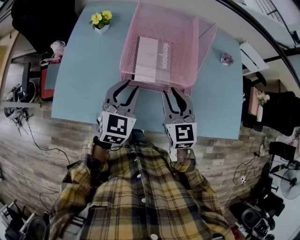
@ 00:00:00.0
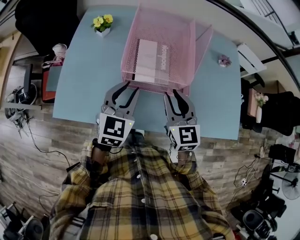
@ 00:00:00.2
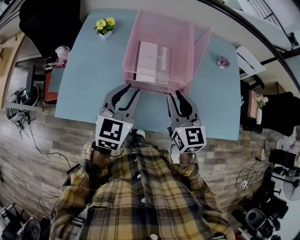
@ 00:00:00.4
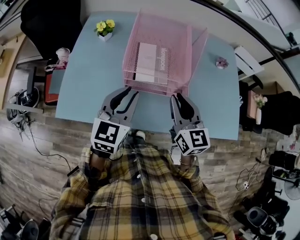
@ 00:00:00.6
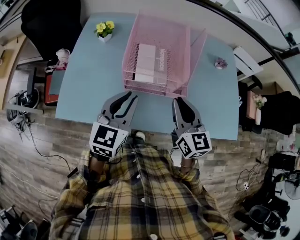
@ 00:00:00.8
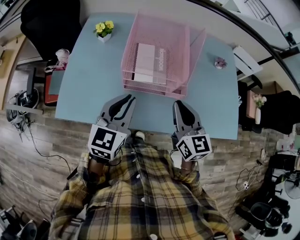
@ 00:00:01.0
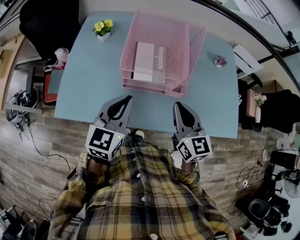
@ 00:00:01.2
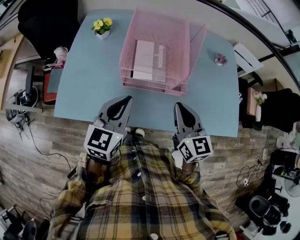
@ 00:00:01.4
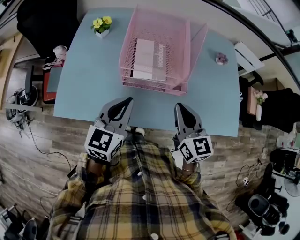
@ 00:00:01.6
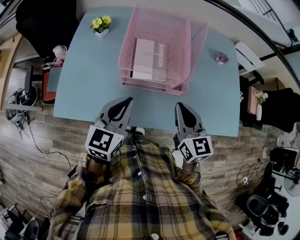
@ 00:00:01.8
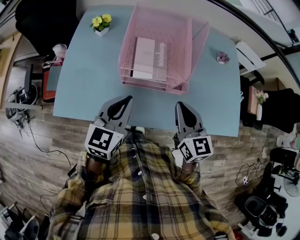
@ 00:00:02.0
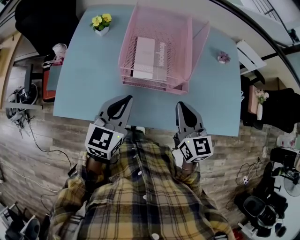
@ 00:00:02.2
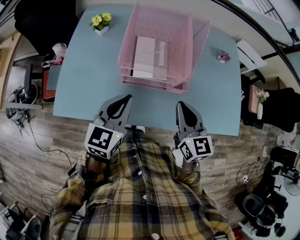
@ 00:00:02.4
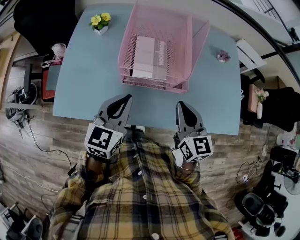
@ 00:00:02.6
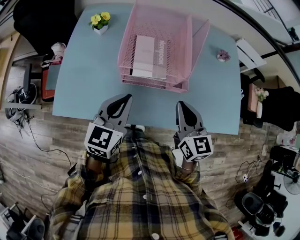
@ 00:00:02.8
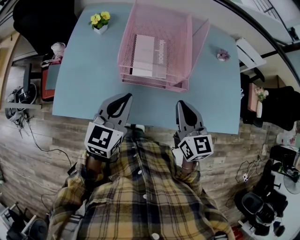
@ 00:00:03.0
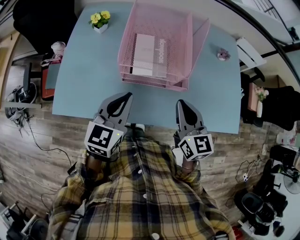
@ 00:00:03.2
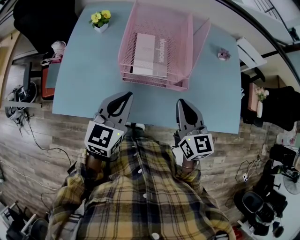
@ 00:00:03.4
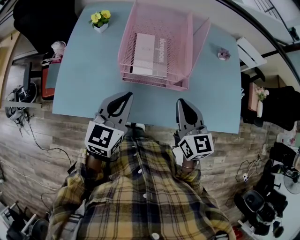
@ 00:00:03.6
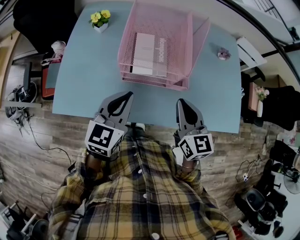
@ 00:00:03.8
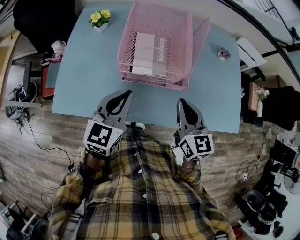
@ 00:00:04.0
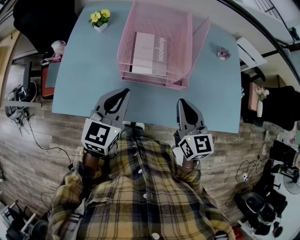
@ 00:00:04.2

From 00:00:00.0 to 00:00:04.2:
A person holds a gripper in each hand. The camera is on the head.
From 00:00:00.0 to 00:00:01.4: The right gripper goes about 5 cm backward. Meanwhile the left gripper travels backward and upward by roughly 10 cm, and closes up.
From 00:00:01.4 to 00:00:02.8: The grippers move only a little.
From 00:00:02.8 to 00:00:04.2: The two grippers keep their place.

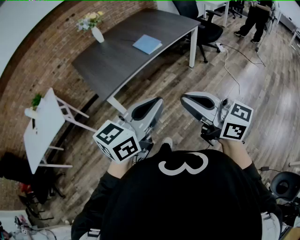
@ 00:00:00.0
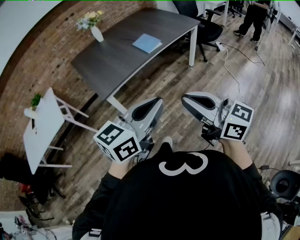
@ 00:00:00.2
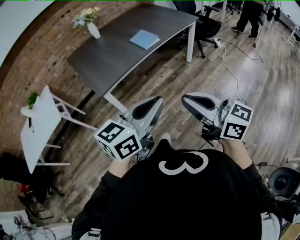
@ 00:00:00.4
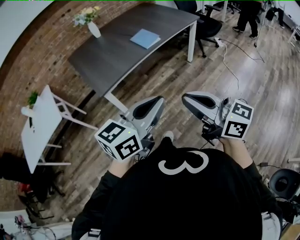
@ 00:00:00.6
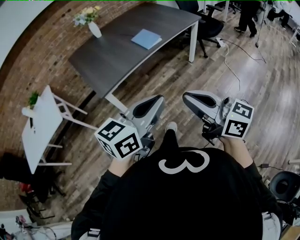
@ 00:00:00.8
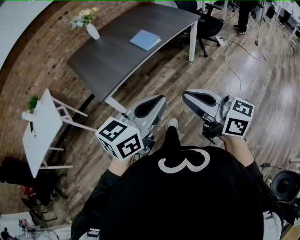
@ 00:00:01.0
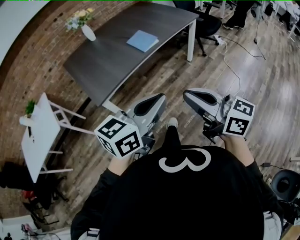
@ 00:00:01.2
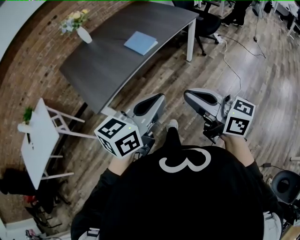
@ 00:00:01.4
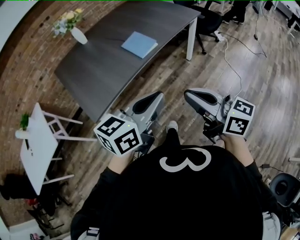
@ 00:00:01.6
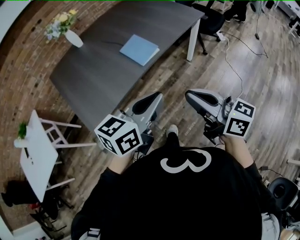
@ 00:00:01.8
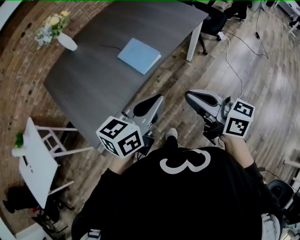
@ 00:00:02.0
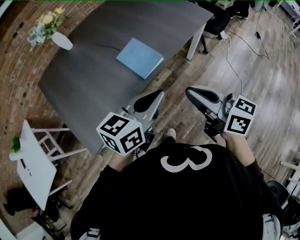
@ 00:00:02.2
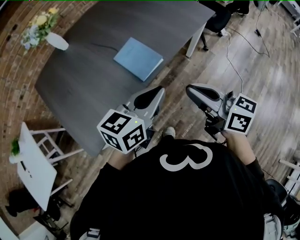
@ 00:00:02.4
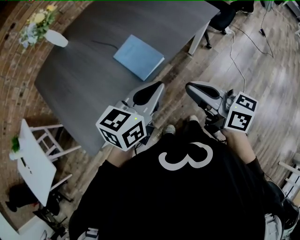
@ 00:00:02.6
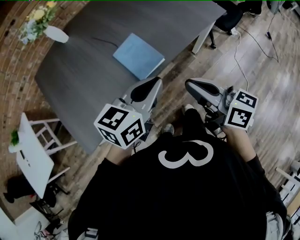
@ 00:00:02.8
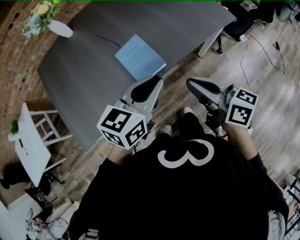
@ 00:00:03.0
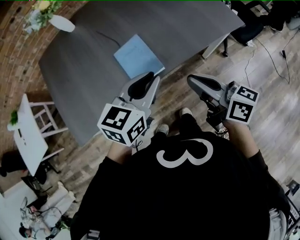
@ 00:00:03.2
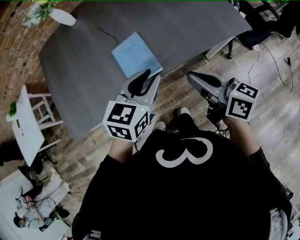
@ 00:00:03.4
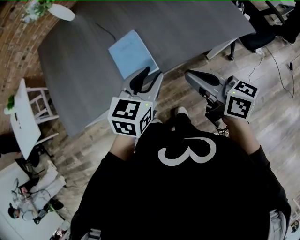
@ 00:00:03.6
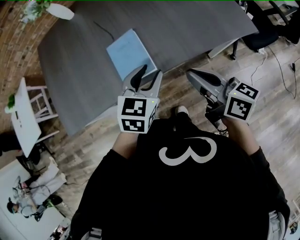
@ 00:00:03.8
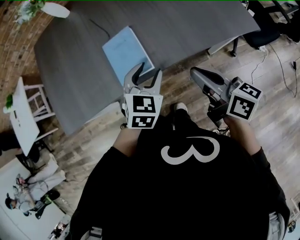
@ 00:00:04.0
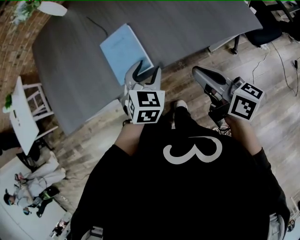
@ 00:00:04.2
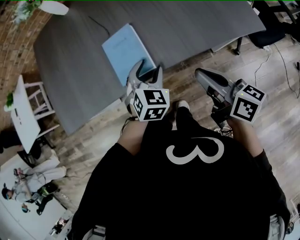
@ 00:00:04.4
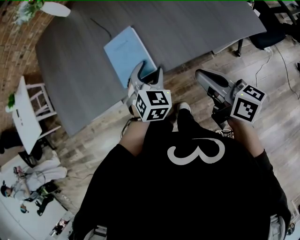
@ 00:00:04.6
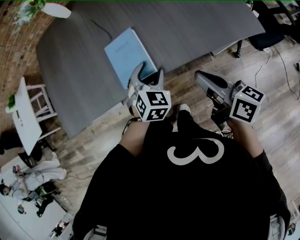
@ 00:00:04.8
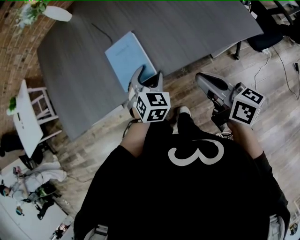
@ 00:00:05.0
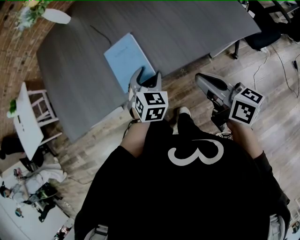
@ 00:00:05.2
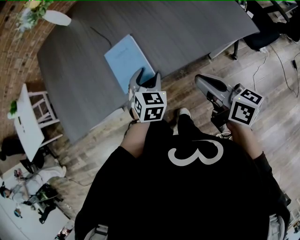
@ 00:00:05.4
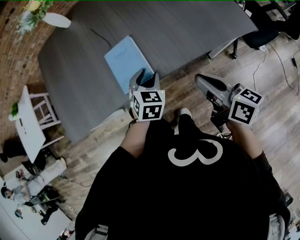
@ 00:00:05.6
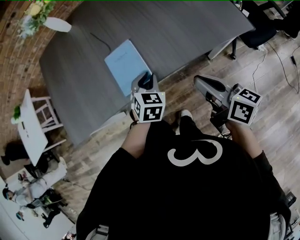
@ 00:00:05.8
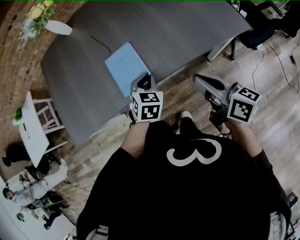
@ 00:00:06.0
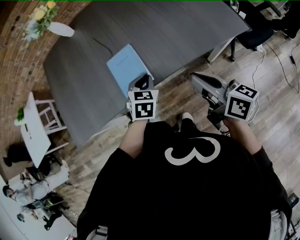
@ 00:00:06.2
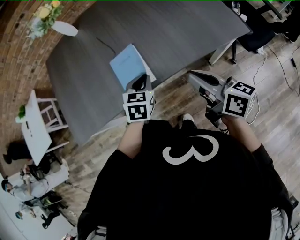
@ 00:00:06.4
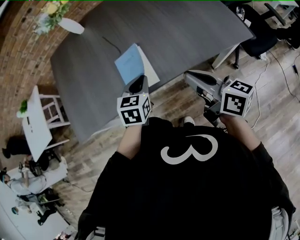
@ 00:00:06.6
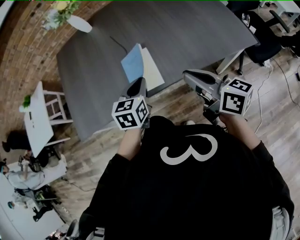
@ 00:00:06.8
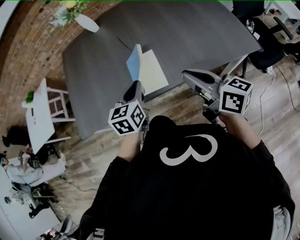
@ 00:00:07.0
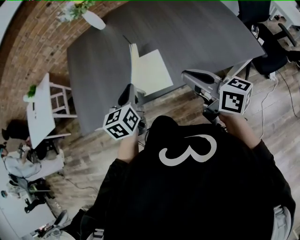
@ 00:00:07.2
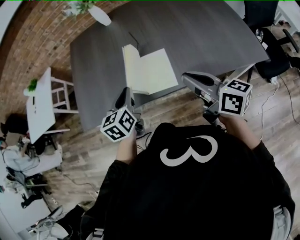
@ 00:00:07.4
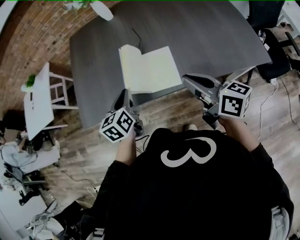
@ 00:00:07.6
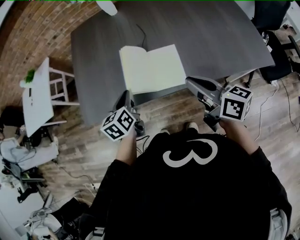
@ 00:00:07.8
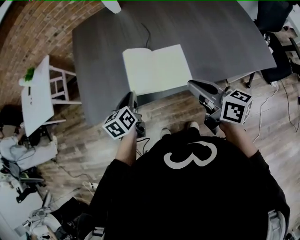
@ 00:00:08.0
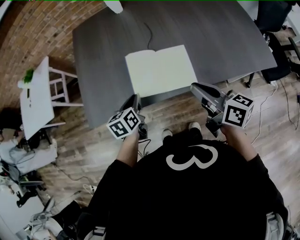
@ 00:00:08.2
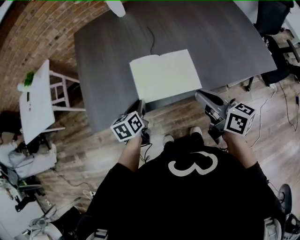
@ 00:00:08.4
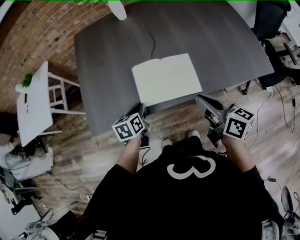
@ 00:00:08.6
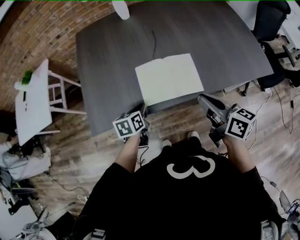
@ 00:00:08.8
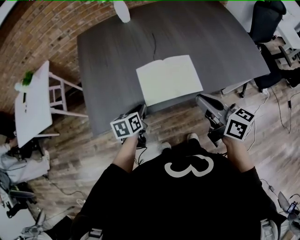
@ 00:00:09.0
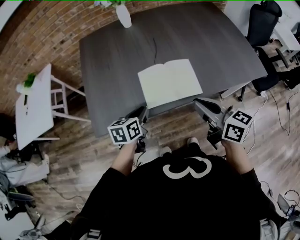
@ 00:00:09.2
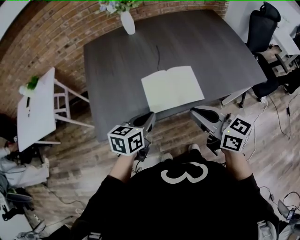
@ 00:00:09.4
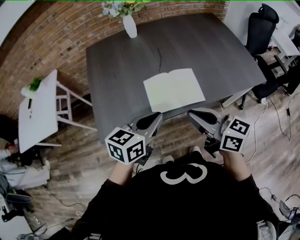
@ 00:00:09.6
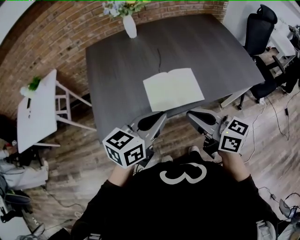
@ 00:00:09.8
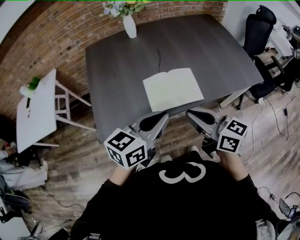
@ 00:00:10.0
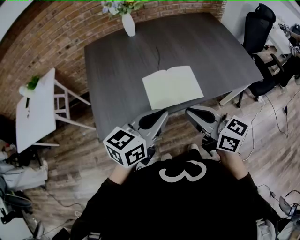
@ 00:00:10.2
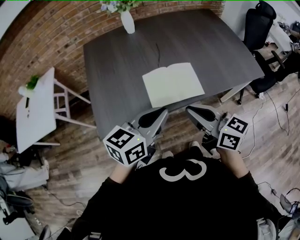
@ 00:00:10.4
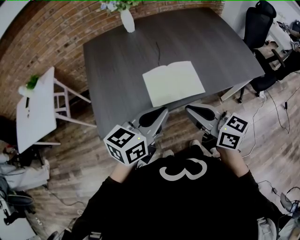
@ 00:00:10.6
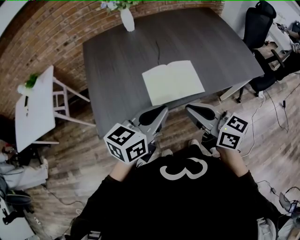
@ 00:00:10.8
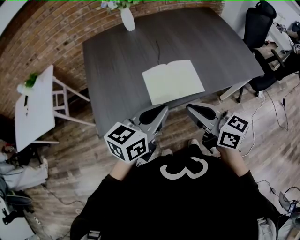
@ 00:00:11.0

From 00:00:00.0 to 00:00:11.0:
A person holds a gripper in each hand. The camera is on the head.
From 00:00:00.0 to 00:00:01.6: The grippers both shift forward by approximately 20 cm.
From 00:00:01.6 to 00:00:03.2: The grippers both shift forward by some 40 cm. The right gripper swivels approximately 20 degrees; the left gripper changes its angle by some 30 degrees.
From 00:00:03.2 to 00:00:04.8: The left gripper shifts about 20 cm downward and forward, turns by about 50 degrees, and opens its fingers. The right gripper shifts approximately 10 cm to the right and downward.
From 00:00:04.8 to 00:00:06.2: The left gripper closes its fingers.
From 00:00:06.2 to 00:00:07.8: The left gripper goes about 25 cm to the left, and twists roughly 40 degrees counterclockwise, seen from behind. Meanwhile the right gripper travels to the left and forward by roughly 15 cm.
From 00:00:07.8 to 00:00:09.4: The right gripper is displaced to the left by about 10 cm. Meanwhile the left gripper moves approximately 10 cm downward and comes back, and swivels roughly 40 degrees.
From 00:00:09.4 to 00:00:11.0: The left gripper goes roughly 10 cm upward.

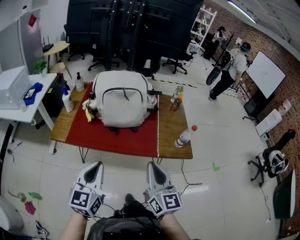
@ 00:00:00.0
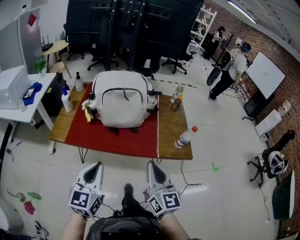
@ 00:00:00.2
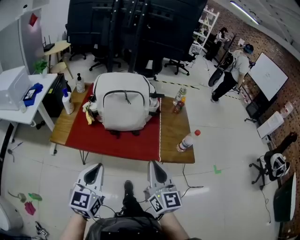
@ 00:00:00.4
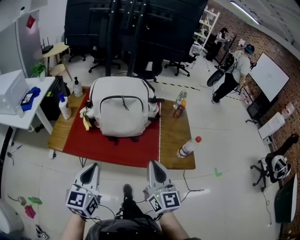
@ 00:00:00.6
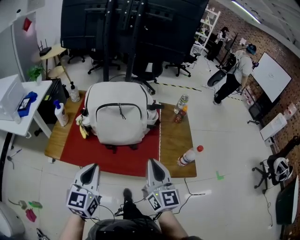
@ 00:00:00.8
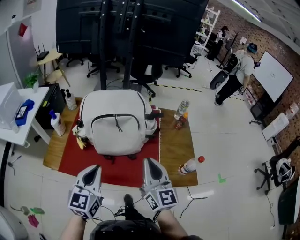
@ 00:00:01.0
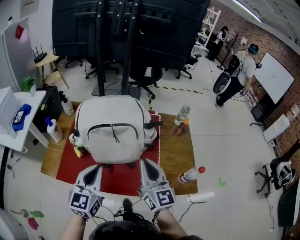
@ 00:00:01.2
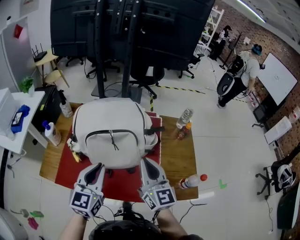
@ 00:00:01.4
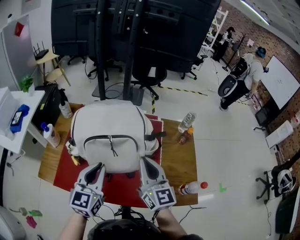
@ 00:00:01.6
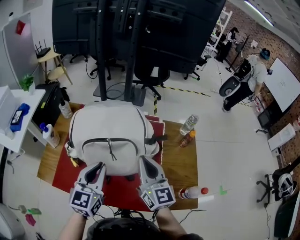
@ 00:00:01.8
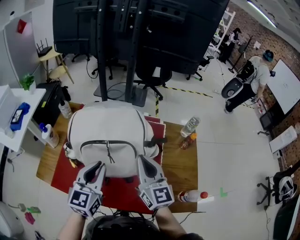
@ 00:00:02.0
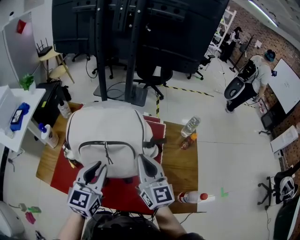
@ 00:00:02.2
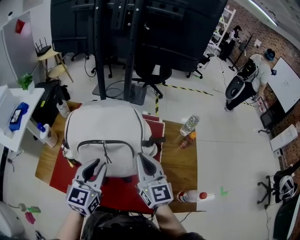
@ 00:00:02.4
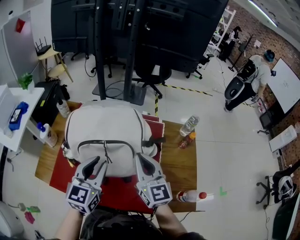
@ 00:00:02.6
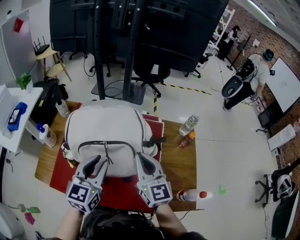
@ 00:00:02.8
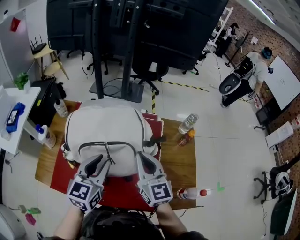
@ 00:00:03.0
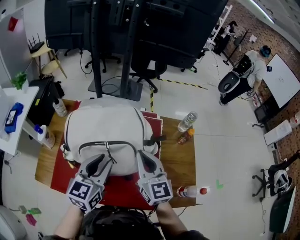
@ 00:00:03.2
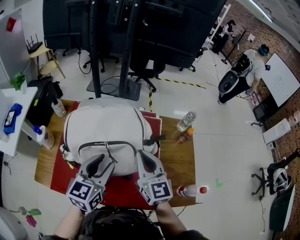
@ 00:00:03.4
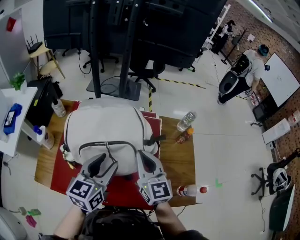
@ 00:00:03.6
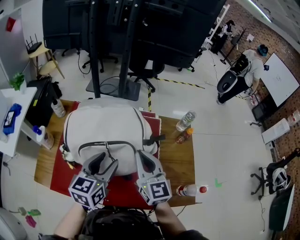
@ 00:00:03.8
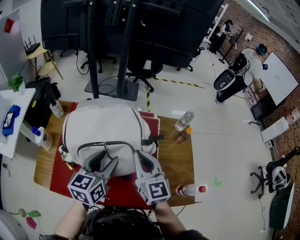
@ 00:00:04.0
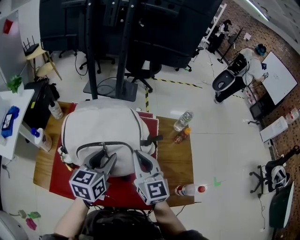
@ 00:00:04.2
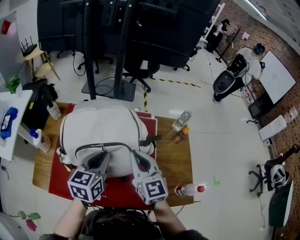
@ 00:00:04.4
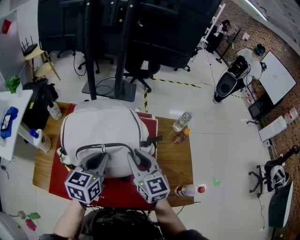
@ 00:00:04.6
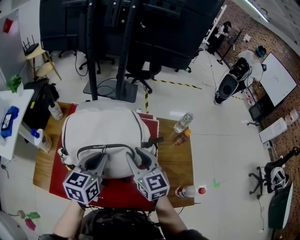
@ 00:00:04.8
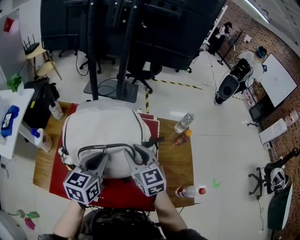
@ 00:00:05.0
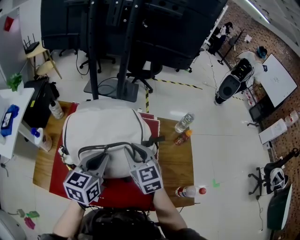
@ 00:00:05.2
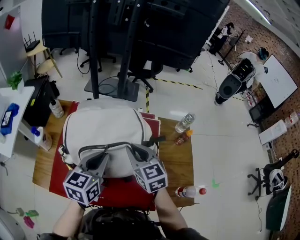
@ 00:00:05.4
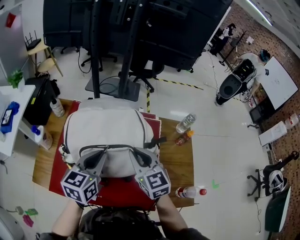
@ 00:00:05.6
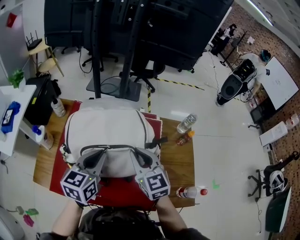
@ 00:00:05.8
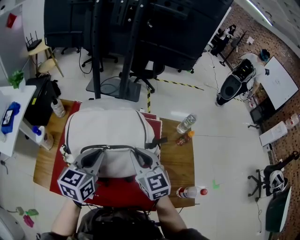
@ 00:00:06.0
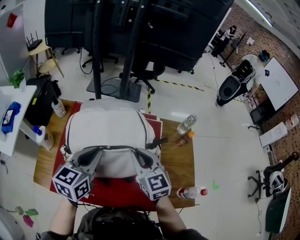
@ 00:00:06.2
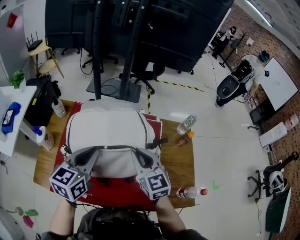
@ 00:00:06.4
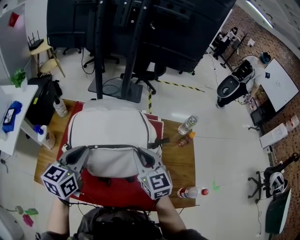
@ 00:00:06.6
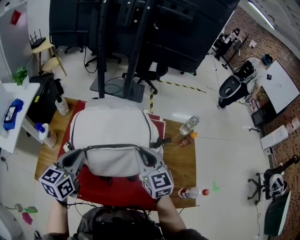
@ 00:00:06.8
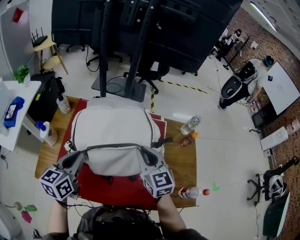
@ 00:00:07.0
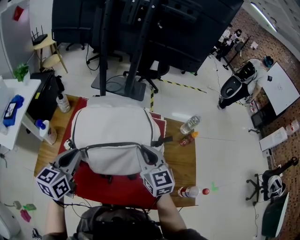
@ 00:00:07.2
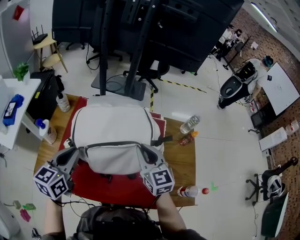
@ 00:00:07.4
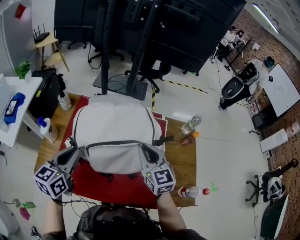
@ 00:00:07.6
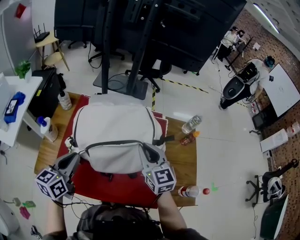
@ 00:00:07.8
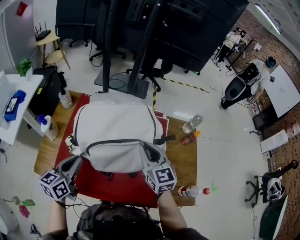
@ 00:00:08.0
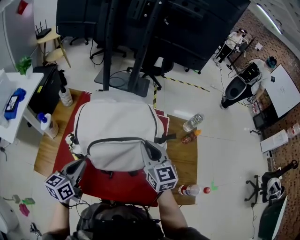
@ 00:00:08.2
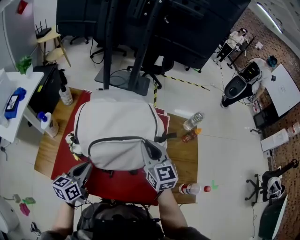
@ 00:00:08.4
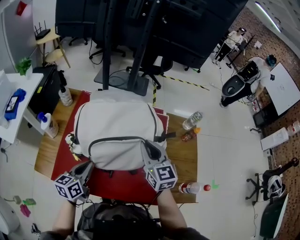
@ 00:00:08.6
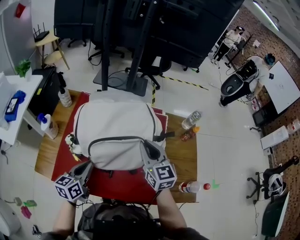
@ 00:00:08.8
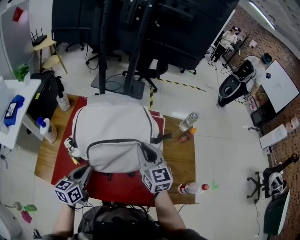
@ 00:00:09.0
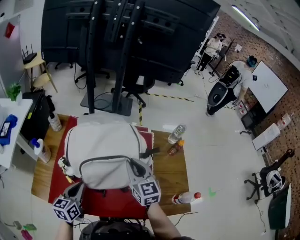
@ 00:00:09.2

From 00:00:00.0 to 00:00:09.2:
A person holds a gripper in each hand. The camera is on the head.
From 00:00:00.0 to 00:00:01.6: The two grippers travel together, forward, about 40 cm.
From 00:00:01.6 to 00:00:03.0: Both grippers move forward, some 10 cm.
From 00:00:03.0 to 00:00:04.6: The left gripper closes.
From 00:00:04.6 to 00:00:06.2: The left gripper shifts by about 5 cm.
From 00:00:06.2 to 00:00:07.6: The left gripper heads to the left, covering approximately 10 cm.
From 00:00:07.6 to 00:00:09.2: The left gripper travels downward and backward by some 10 cm.
